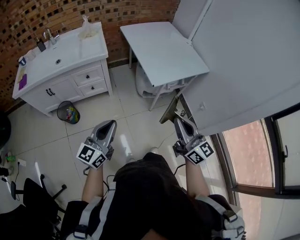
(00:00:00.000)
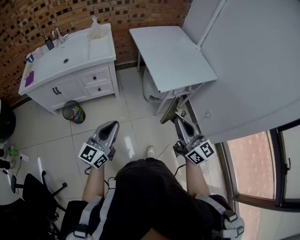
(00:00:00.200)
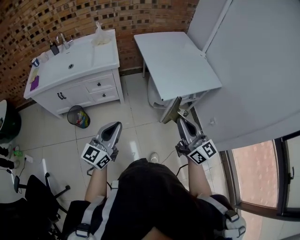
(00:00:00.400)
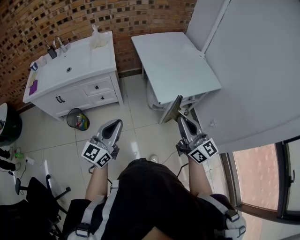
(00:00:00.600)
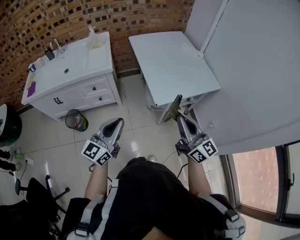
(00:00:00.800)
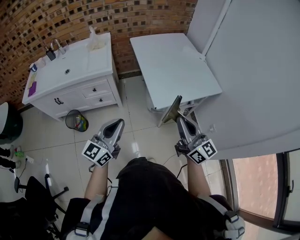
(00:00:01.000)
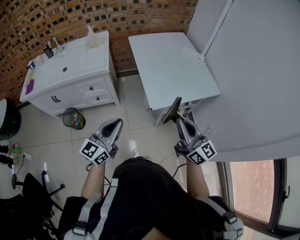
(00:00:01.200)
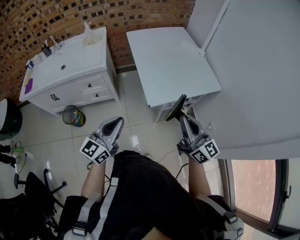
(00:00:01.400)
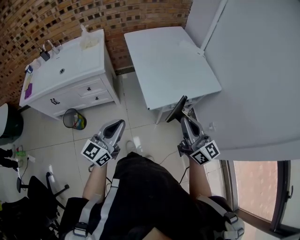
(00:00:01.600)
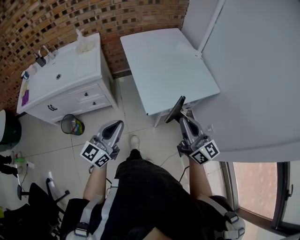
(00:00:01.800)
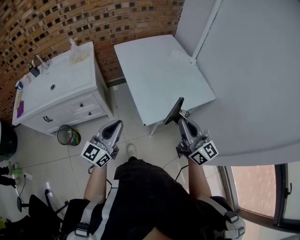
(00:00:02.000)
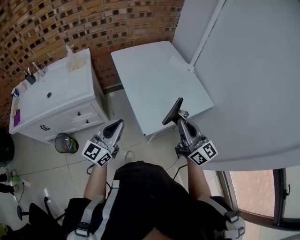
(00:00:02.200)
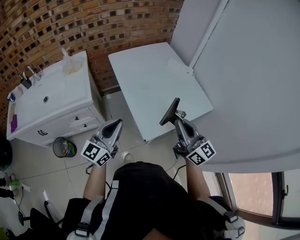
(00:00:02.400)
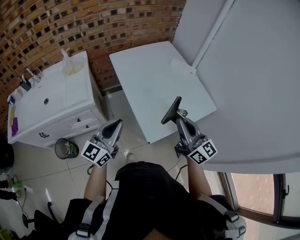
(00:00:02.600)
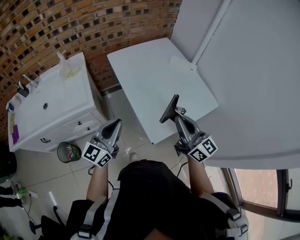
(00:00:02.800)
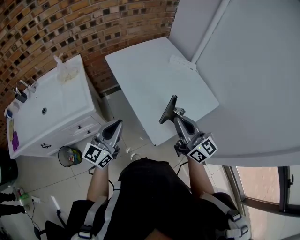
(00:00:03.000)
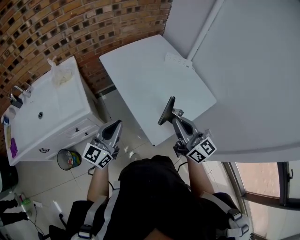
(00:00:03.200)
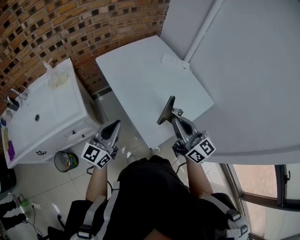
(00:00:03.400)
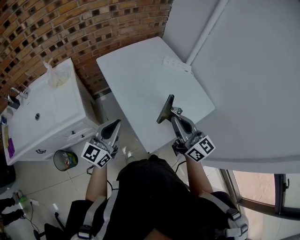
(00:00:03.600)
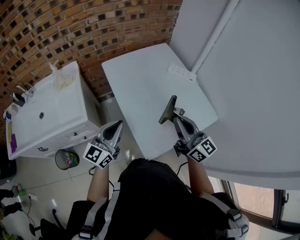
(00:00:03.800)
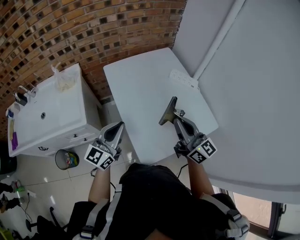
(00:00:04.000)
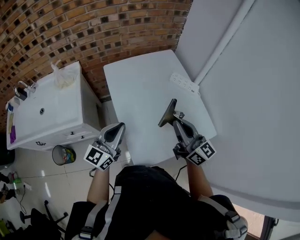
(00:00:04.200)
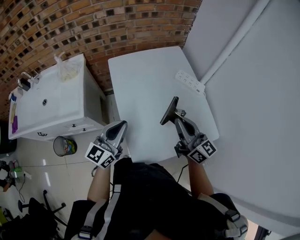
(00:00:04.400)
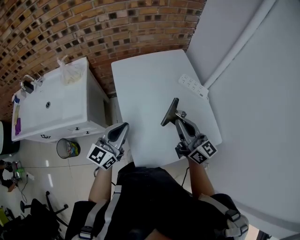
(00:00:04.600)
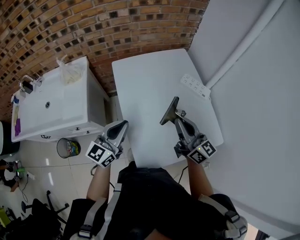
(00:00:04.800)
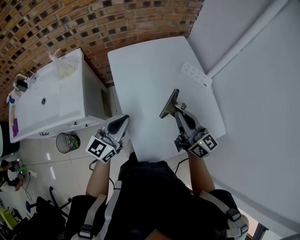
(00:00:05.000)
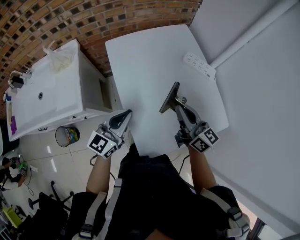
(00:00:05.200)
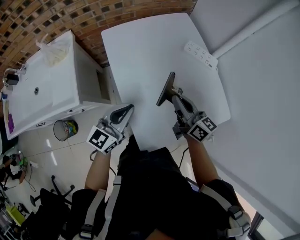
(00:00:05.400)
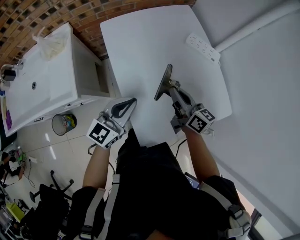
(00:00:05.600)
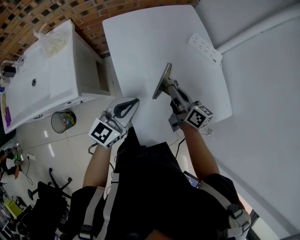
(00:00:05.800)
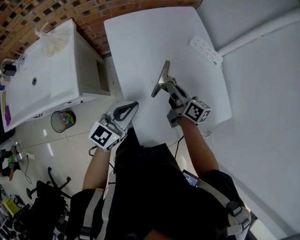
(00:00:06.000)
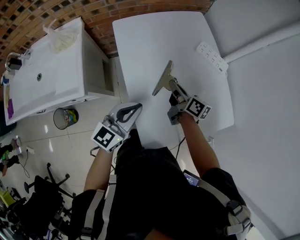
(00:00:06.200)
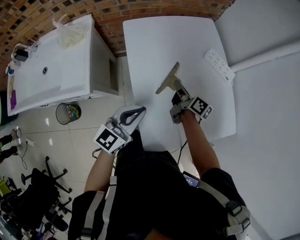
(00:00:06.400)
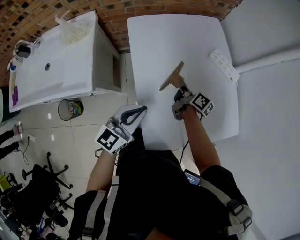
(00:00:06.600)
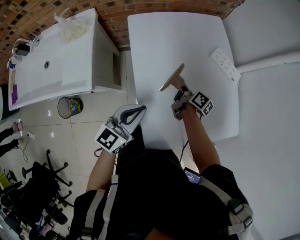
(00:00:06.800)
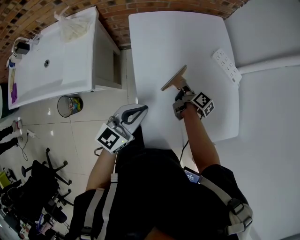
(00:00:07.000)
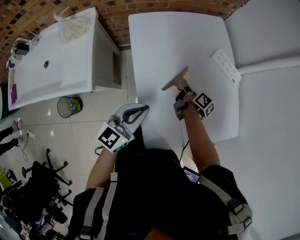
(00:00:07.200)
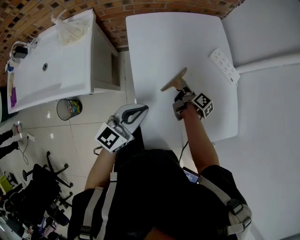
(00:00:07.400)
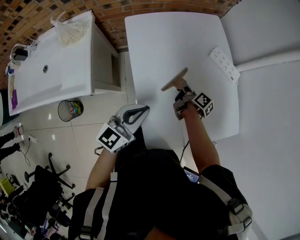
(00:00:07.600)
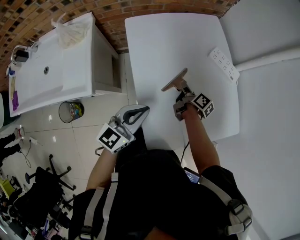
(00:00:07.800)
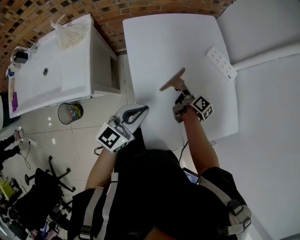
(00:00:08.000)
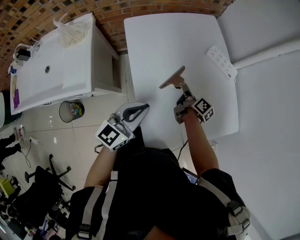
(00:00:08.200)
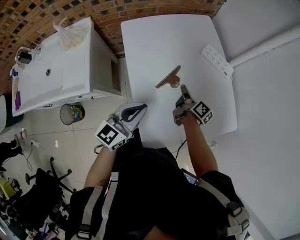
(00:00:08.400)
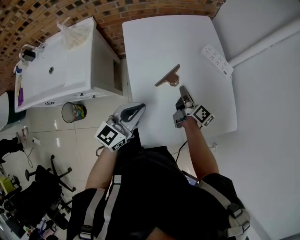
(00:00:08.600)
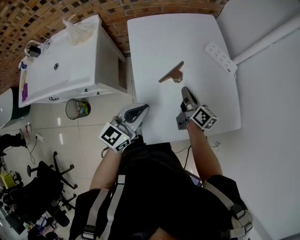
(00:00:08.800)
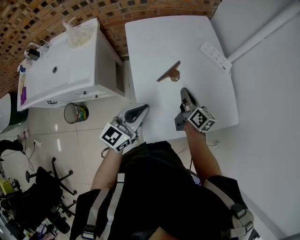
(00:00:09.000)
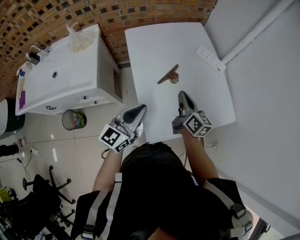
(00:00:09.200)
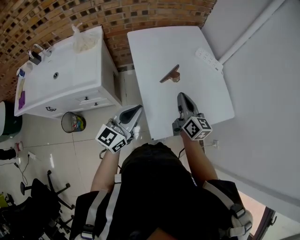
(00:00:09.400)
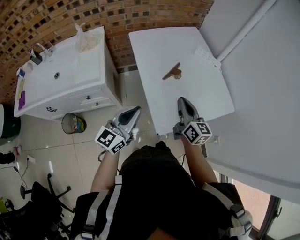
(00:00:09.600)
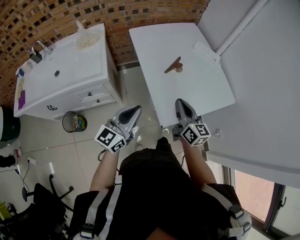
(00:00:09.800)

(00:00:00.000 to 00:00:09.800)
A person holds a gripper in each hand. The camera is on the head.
00:00:00.000 - 00:00:01.400: Both grippers travel together forward and to the right, approximately 20 cm.
00:00:01.400 - 00:00:02.800: The grippers both shift forward by approximately 20 cm.
00:00:02.800 - 00:00:04.200: Both grippers travel together forward and to the right, about 15 cm.
00:00:04.200 - 00:00:05.600: The left gripper heads downward, covering some 10 cm, while the right gripper moves downward and forward, some 15 cm, and rotates some 30 degrees.
00:00:05.600 - 00:00:07.000: The right gripper travels downward and forward by some 20 cm, and rotates about 40 degrees.
00:00:07.000 - 00:00:08.400: The right gripper shifts by some 5 cm.
00:00:08.400 - 00:00:09.800: The right gripper moves backward and upward, some 30 cm, and rolls counterclockwise, seen from behind, by some 50 degrees, while the left gripper shifts roughly 20 cm backward and to the left.

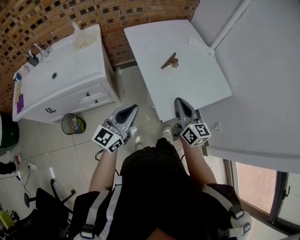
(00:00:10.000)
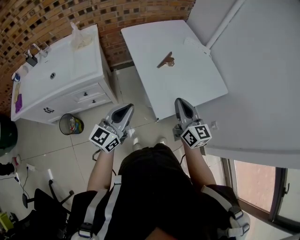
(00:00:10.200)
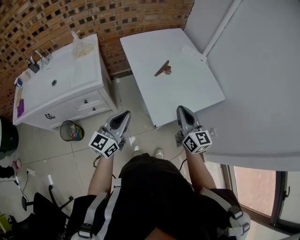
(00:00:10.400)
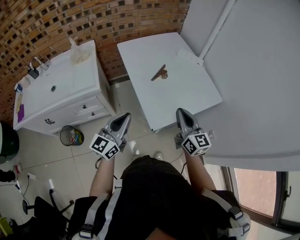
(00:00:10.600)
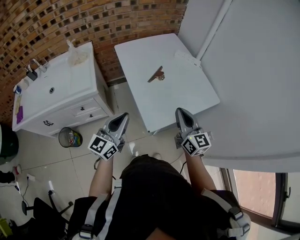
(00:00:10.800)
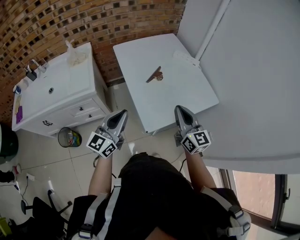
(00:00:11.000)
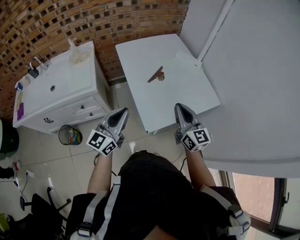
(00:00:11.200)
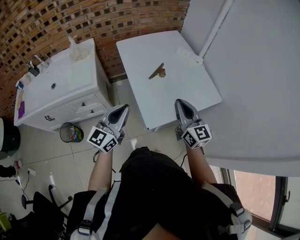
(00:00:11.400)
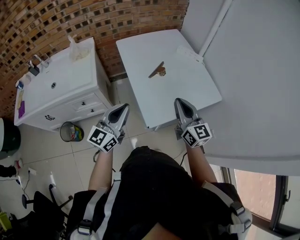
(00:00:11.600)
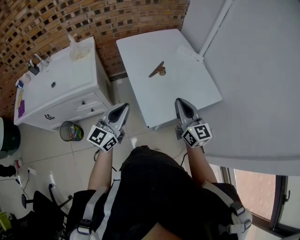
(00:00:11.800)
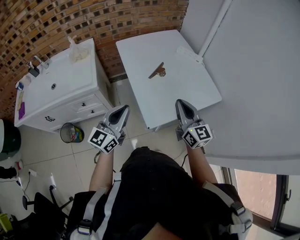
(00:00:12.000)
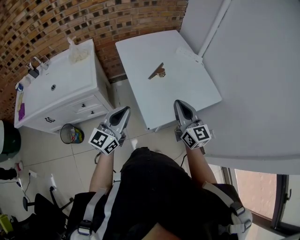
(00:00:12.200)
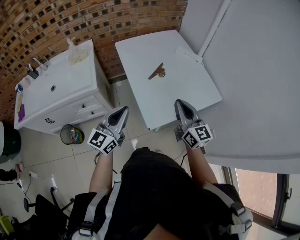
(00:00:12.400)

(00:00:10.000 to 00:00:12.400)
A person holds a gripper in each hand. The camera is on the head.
00:00:10.000 - 00:00:11.200: The left gripper moves roughly 5 cm; the right gripper goes some 10 cm to the right and upward.
00:00:11.200 - 00:00:12.400: Neither gripper changes place.

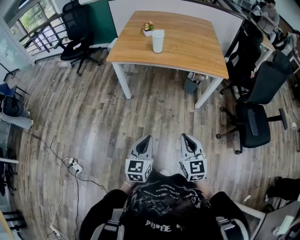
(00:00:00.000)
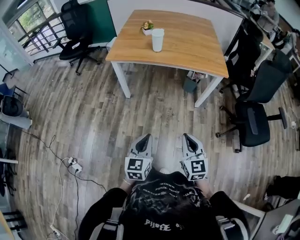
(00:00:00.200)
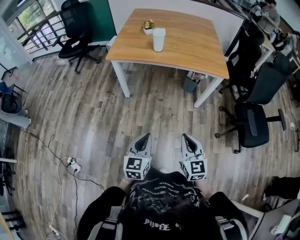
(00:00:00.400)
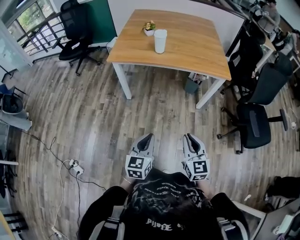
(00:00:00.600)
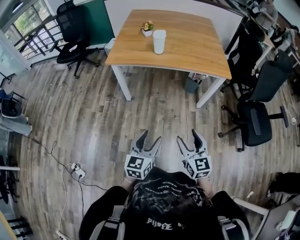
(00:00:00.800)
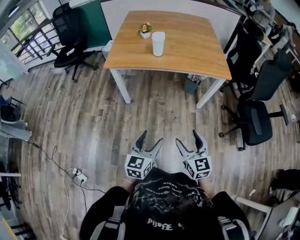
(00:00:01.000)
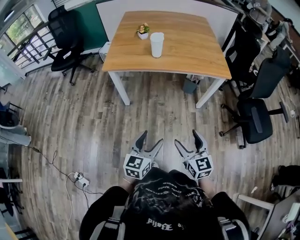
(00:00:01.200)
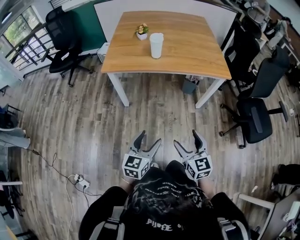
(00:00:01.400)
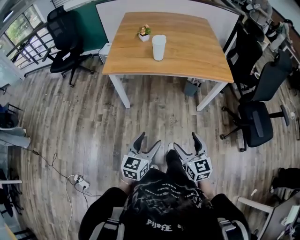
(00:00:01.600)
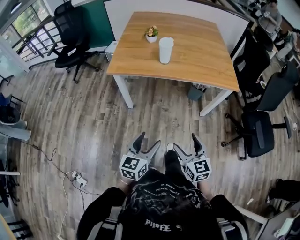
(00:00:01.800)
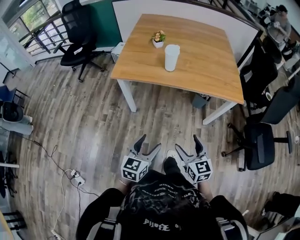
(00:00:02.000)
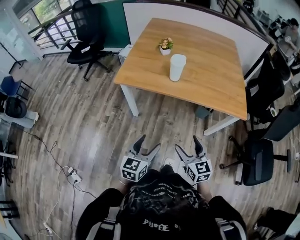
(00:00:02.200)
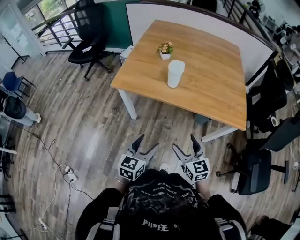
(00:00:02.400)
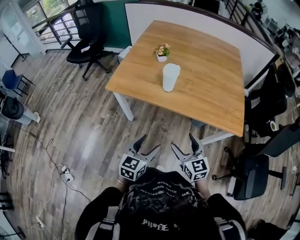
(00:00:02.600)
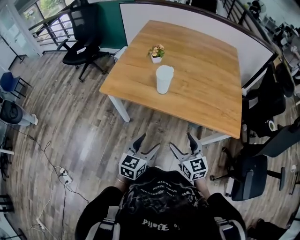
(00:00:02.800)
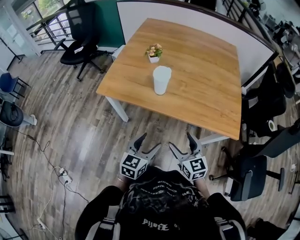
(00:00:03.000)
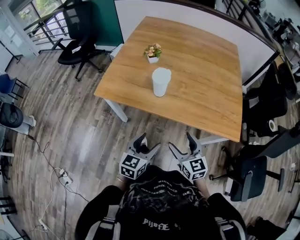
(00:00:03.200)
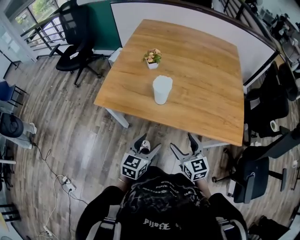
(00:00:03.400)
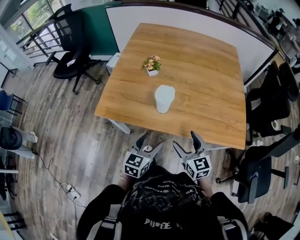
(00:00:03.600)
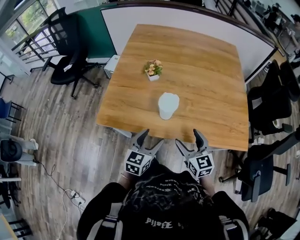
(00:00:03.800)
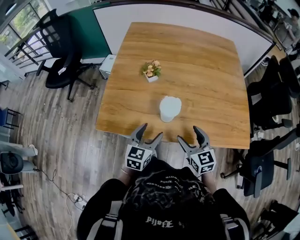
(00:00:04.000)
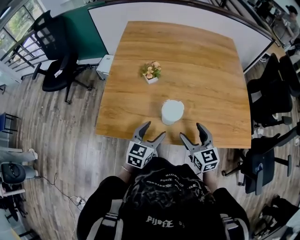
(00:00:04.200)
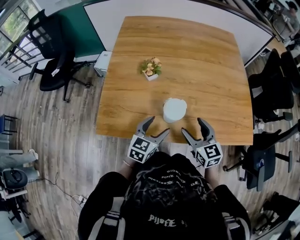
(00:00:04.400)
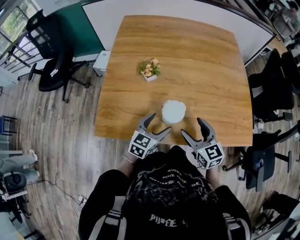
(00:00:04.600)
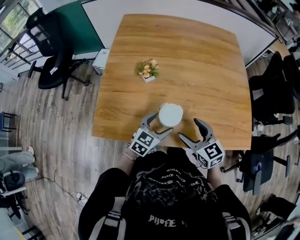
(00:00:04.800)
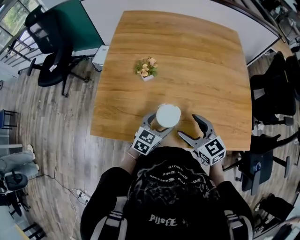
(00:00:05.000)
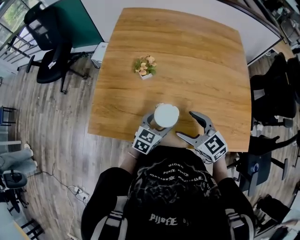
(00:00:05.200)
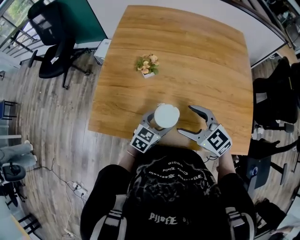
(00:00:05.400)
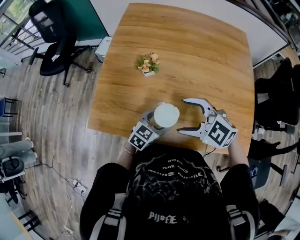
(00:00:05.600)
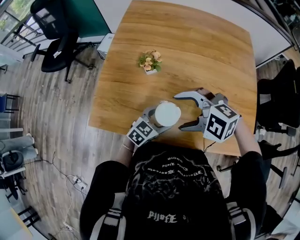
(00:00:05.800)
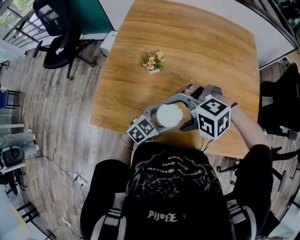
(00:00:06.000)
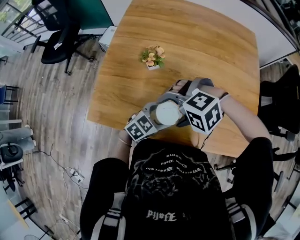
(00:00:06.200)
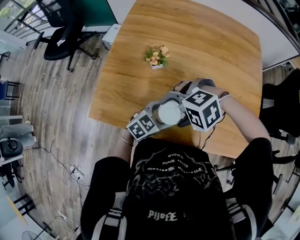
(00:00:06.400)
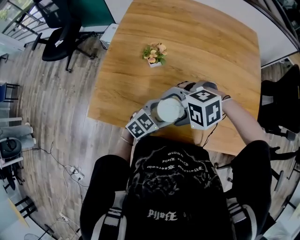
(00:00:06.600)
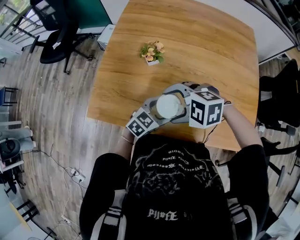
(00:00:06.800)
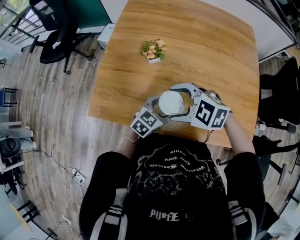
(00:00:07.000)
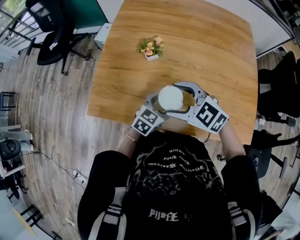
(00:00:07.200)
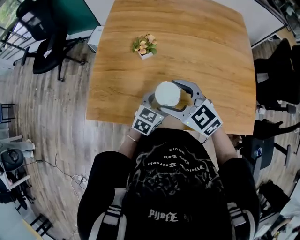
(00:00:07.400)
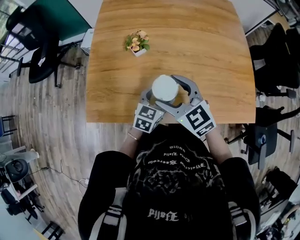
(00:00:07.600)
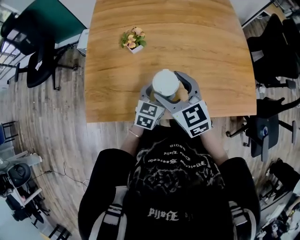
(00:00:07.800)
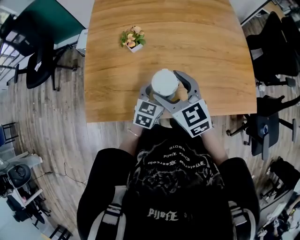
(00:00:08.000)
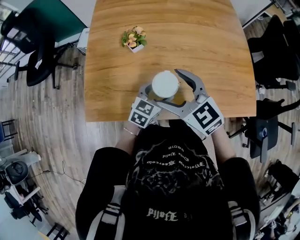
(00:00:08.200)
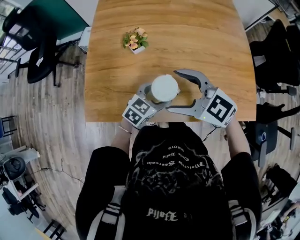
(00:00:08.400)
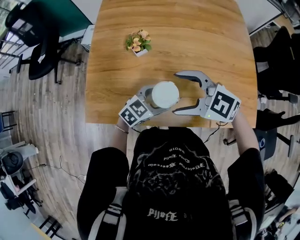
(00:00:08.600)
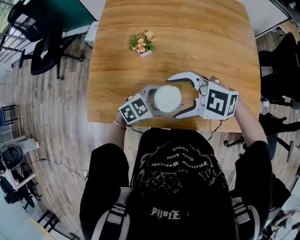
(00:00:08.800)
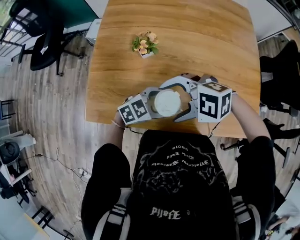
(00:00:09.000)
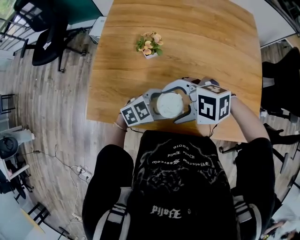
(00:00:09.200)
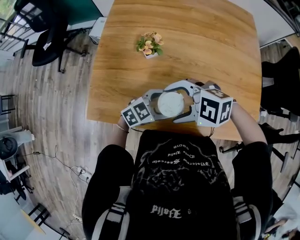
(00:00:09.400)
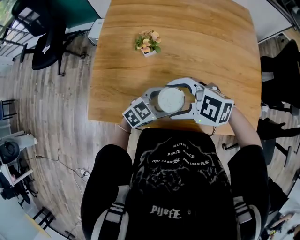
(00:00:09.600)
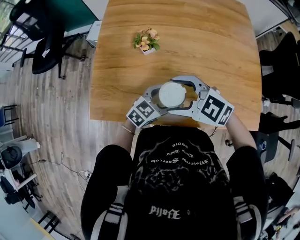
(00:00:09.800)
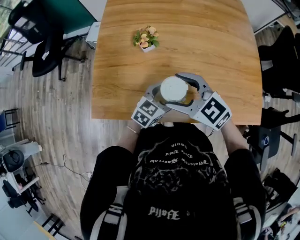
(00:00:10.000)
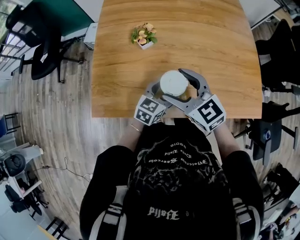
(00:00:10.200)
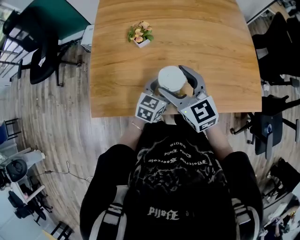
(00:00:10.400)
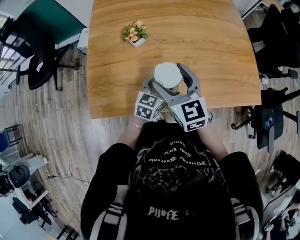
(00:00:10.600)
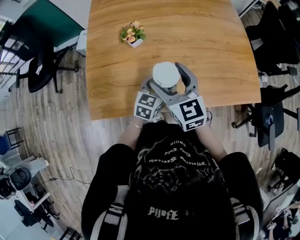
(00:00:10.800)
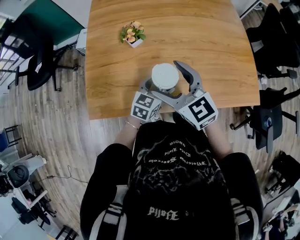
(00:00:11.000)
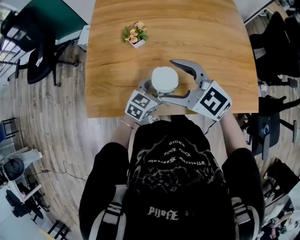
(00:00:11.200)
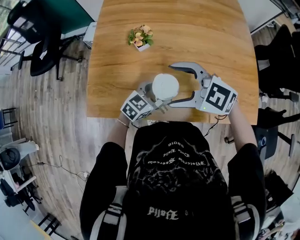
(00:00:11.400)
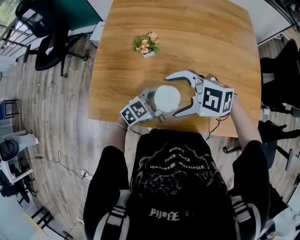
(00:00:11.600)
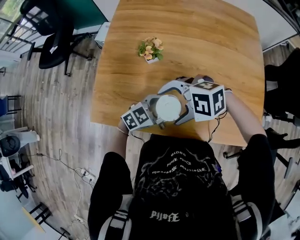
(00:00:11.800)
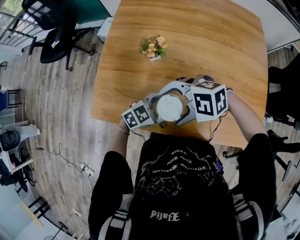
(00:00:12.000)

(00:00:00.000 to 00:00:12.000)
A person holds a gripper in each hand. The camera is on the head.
00:00:00.000 - 00:00:01.600: The two grippers go approximately 15 cm forward and to the left. The left gripper opens its fingers; the right gripper opens.
00:00:01.600 - 00:00:03.000: The right gripper shifts approximately 35 cm forward. Meanwhile the left gripper shifts about 30 cm forward and to the right.
00:00:03.000 - 00:00:04.400: Both grippers travel together forward, approximately 25 cm.
00:00:04.400 - 00:00:06.000: The right gripper moves approximately 10 cm, and points its fingers about 30 degrees further downward; the left gripper changes place by roughly 10 cm, and changes its angle by roughly 20 degrees.
00:00:06.000 - 00:00:07.600: The right gripper changes its angle by about 80 degrees.
00:00:07.600 - 00:00:09.000: The left gripper turns by roughly 40 degrees. The right gripper changes its angle by some 60 degrees.
00:00:09.000 - 00:00:10.400: The right gripper rotates approximately 80 degrees, while the left gripper turns by some 30 degrees.
00:00:10.400 - 00:00:12.000: The left gripper rotates some 30 degrees. The right gripper turns by approximately 90 degrees.
